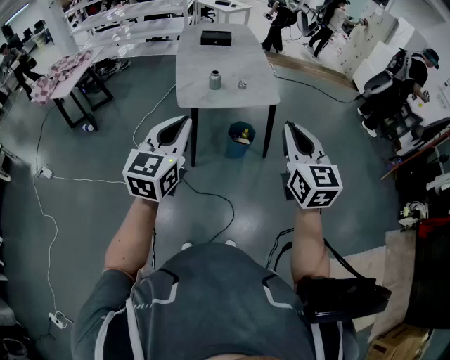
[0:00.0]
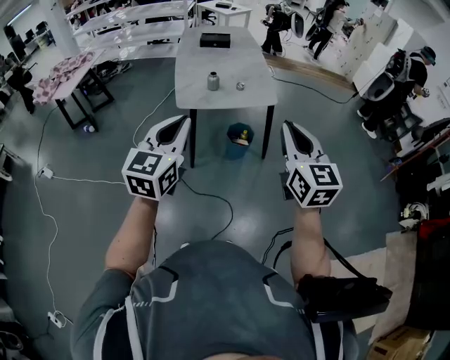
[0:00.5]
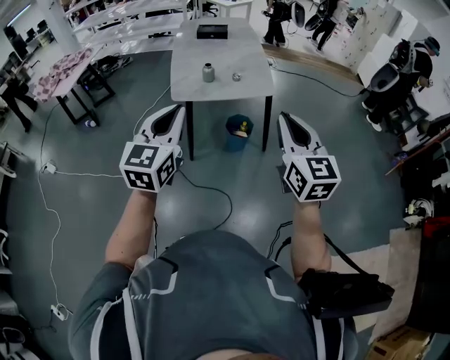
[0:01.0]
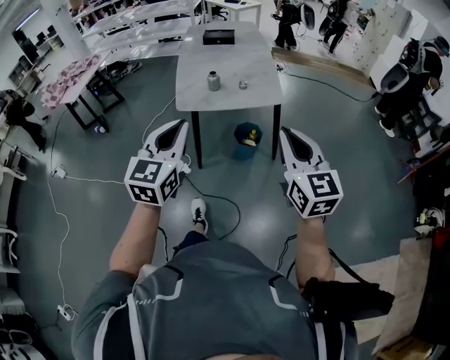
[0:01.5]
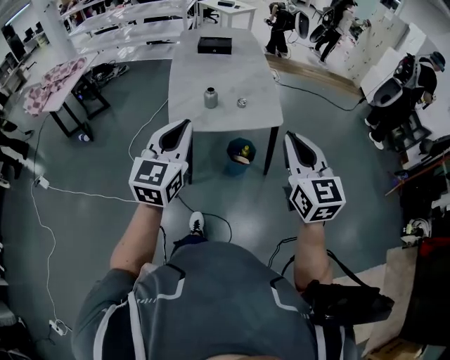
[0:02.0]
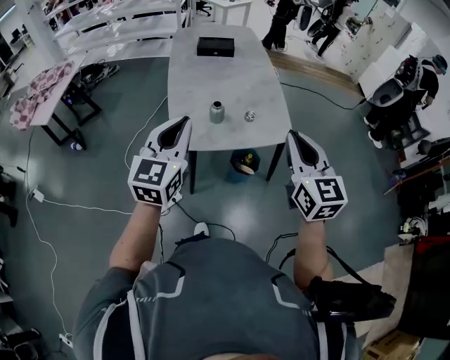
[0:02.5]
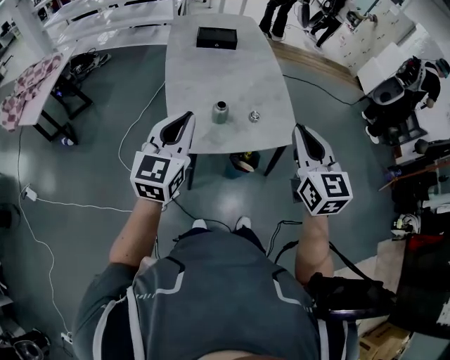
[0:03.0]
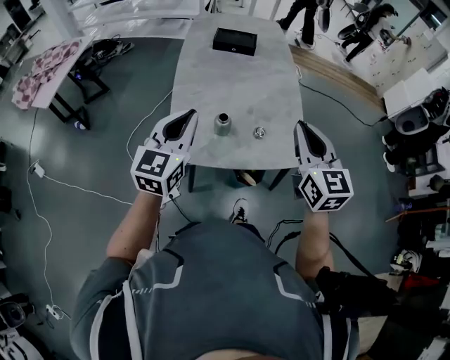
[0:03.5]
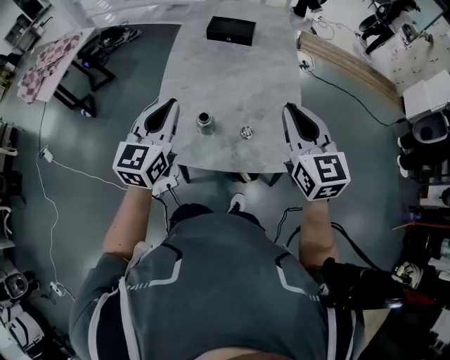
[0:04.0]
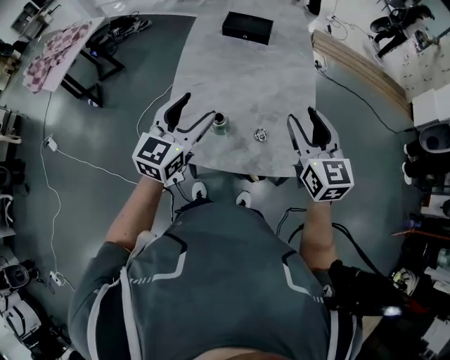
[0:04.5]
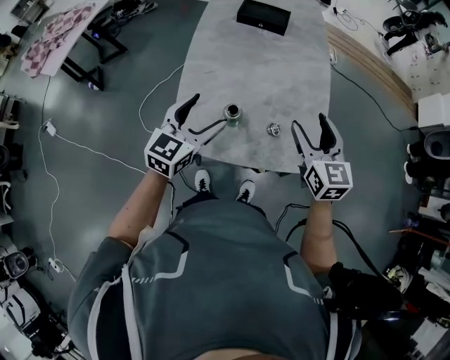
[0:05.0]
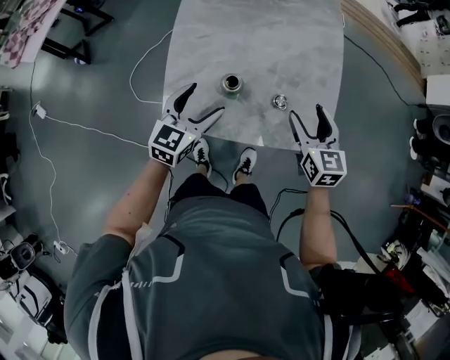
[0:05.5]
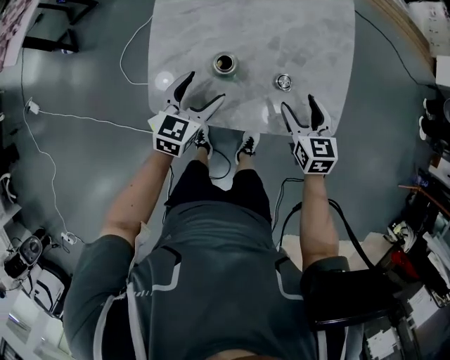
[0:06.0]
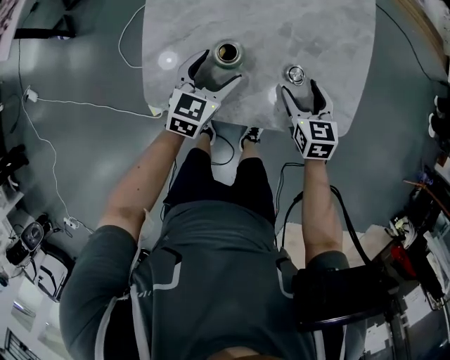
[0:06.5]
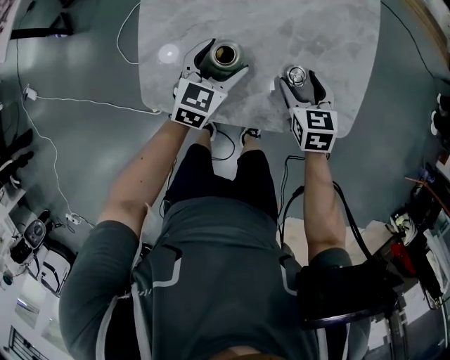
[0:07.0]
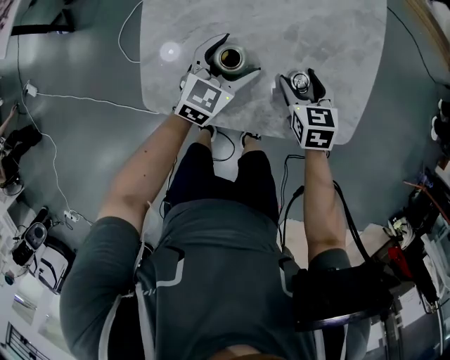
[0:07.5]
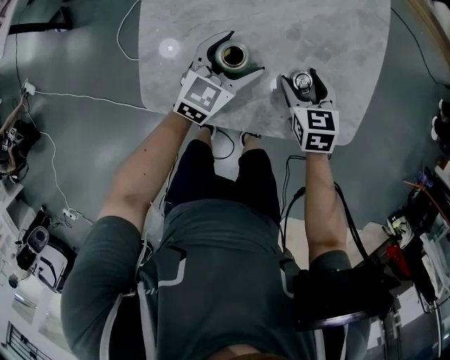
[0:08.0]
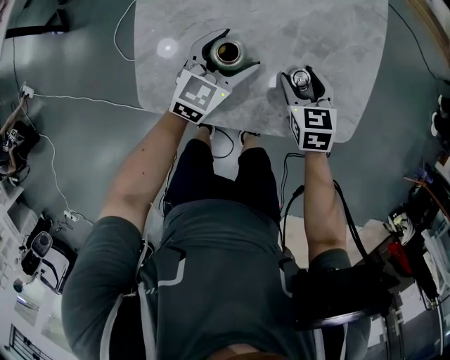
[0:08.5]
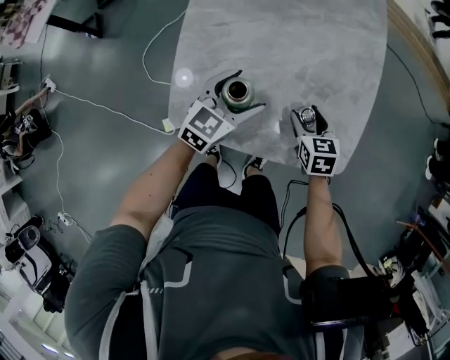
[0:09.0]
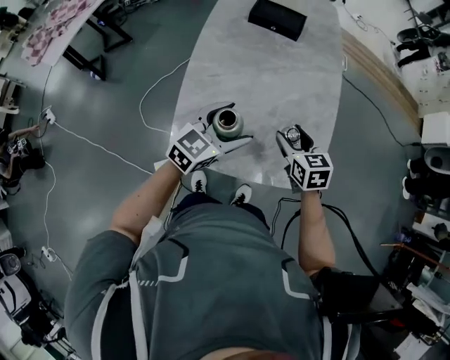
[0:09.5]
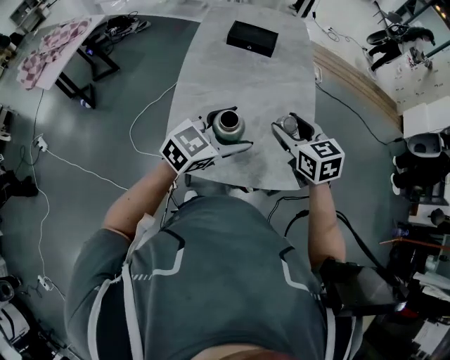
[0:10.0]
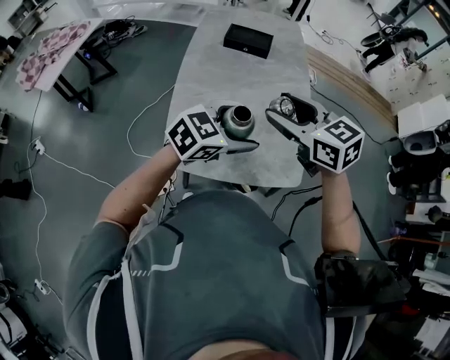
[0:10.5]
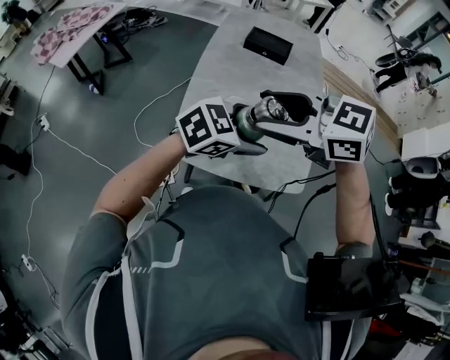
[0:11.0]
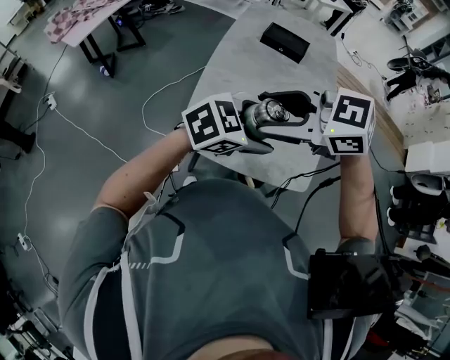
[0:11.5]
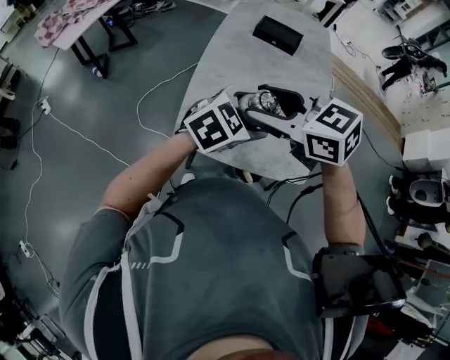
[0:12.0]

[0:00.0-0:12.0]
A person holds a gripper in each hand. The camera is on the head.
0:00.0 to 0:02.0: The two grippers go roughly 15 cm forward.
0:02.0 to 0:04.0: The grippers both shift forward by roughly 40 cm.
0:04.0 to 0:06.0: Both grippers move downward, some 35 cm. The right gripper swivels some 30 degrees, and opens up; the left gripper rotates about 20 degrees, and opens up.
0:06.0 to 0:08.0: The left gripper shifts some 10 cm forward and to the right. The right gripper heads downward and forward, covering some 10 cm.
0:08.0 to 0:10.0: Both grippers travel together upward, some 30 cm. The right gripper rotates some 20 degrees.
0:10.0 to 0:12.0: The right gripper ends up some 25 cm from where it was, and rotates about 40 degrees.

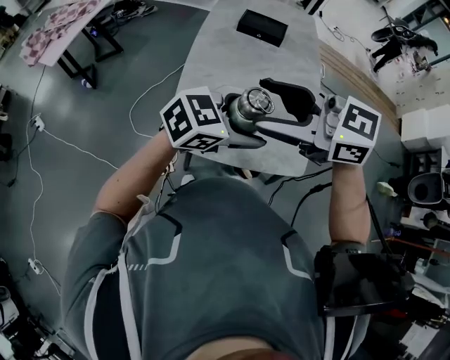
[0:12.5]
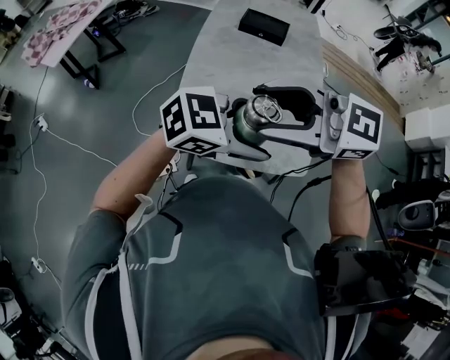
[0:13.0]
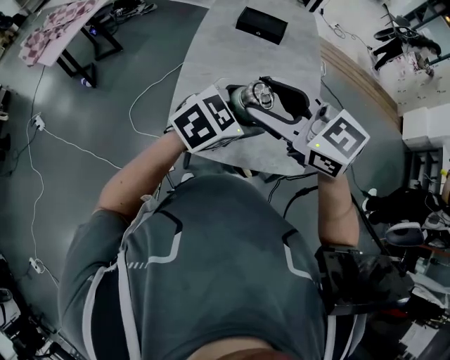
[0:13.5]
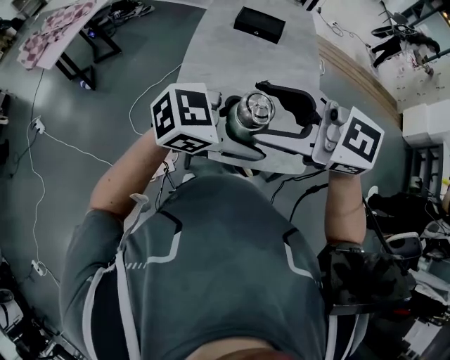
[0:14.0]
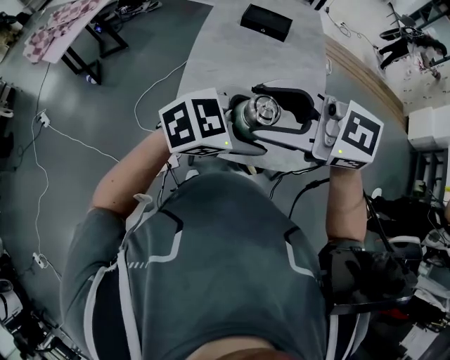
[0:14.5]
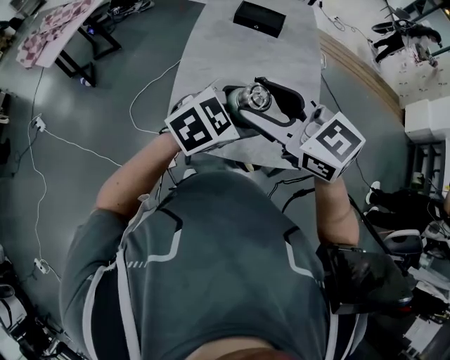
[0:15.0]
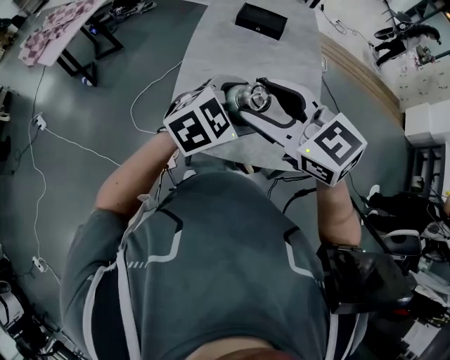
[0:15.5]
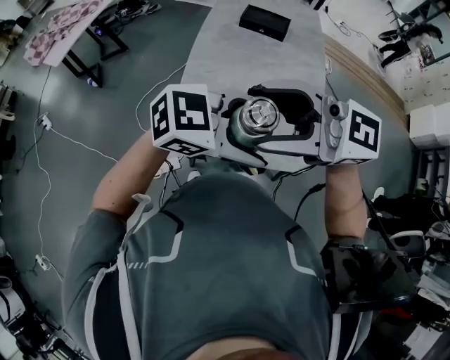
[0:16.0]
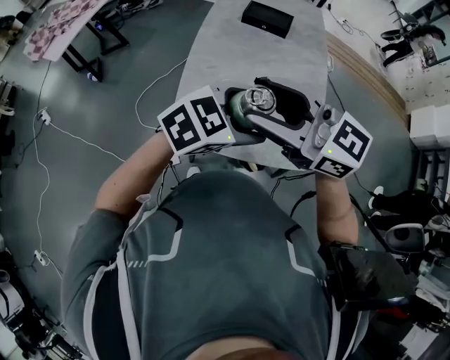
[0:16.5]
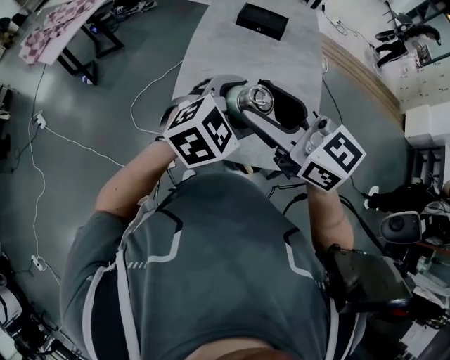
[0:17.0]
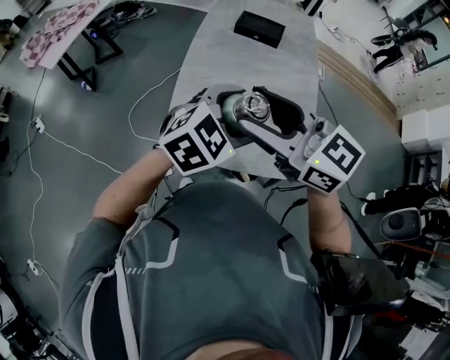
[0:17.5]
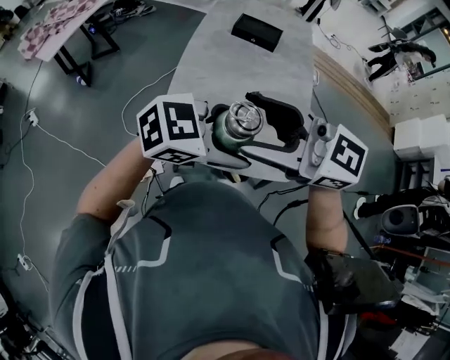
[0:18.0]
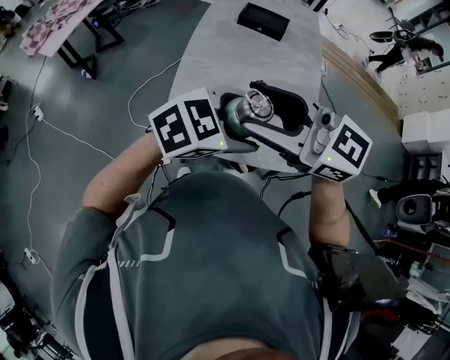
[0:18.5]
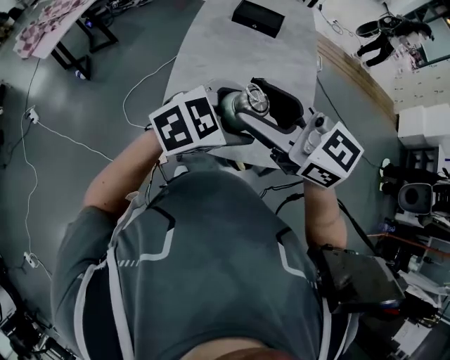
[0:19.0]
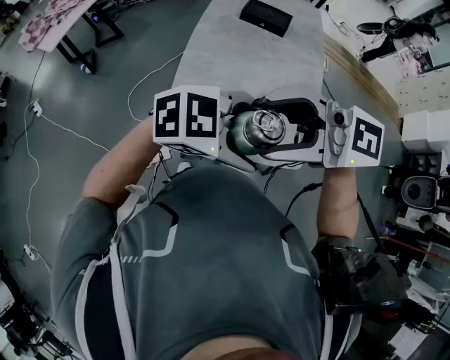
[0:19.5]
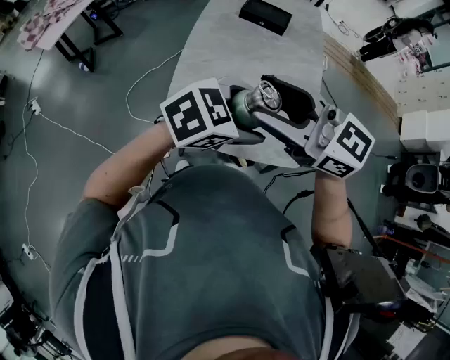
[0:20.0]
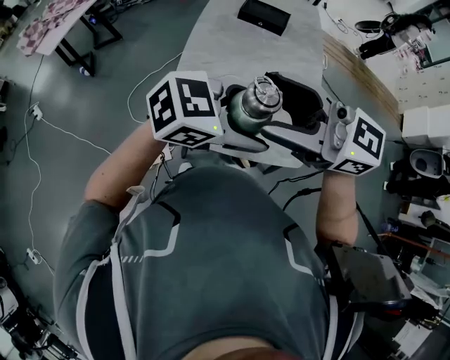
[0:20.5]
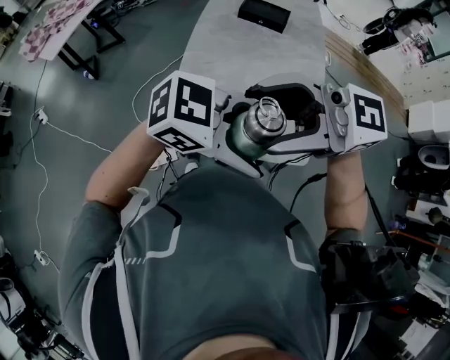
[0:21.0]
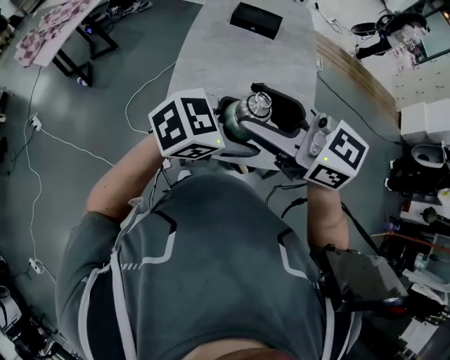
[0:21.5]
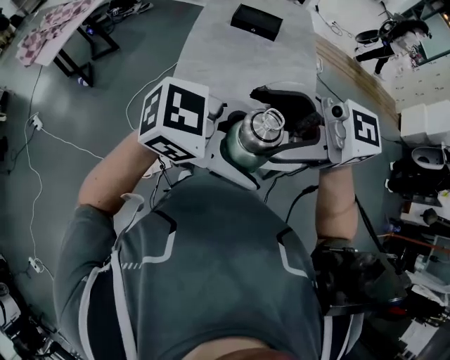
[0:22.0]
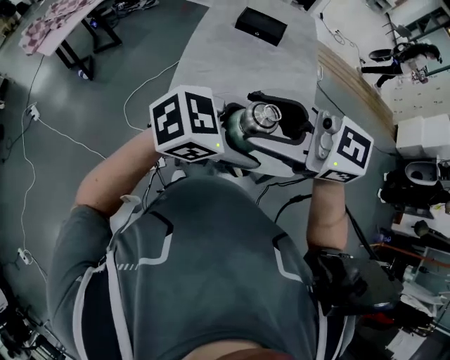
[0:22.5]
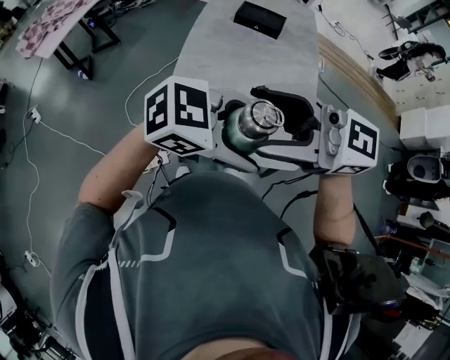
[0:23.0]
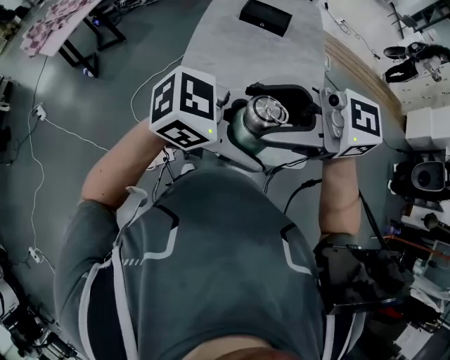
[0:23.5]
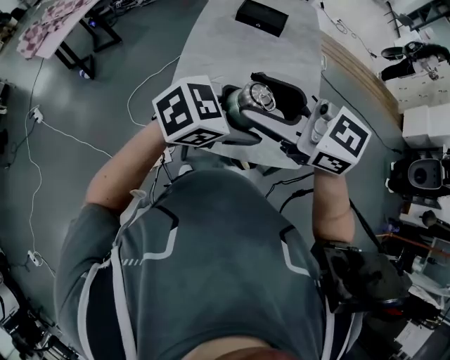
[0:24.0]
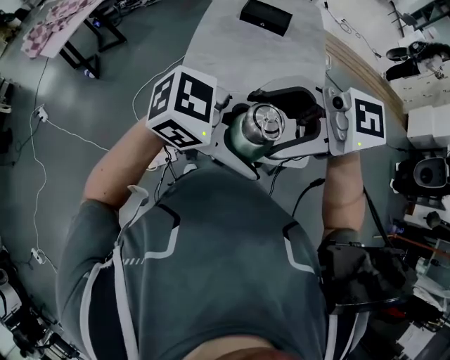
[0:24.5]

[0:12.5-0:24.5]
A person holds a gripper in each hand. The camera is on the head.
0:22.5 to 0:24.5: The right gripper turns by about 20 degrees. Meanwhile the left gripper changes place by about 5 cm, and rotates some 20 degrees.

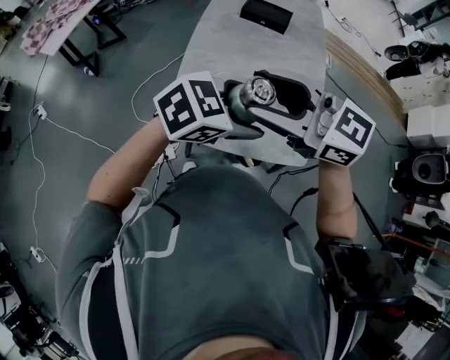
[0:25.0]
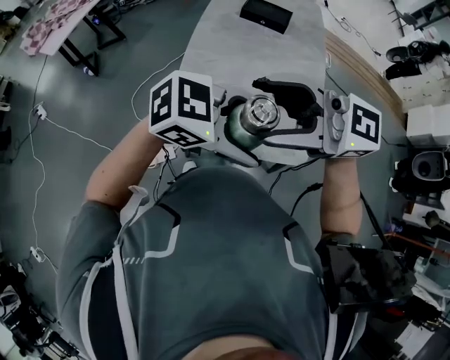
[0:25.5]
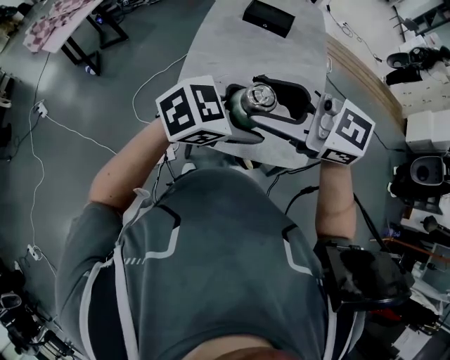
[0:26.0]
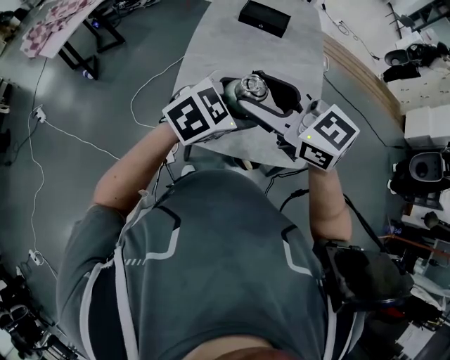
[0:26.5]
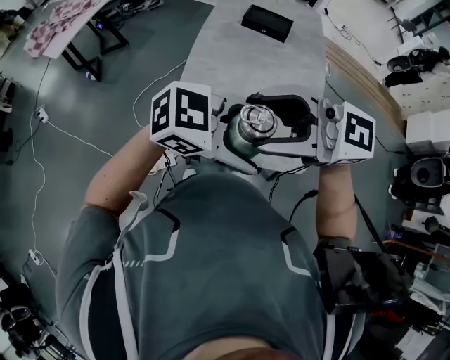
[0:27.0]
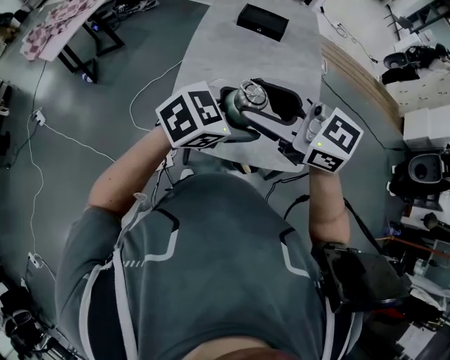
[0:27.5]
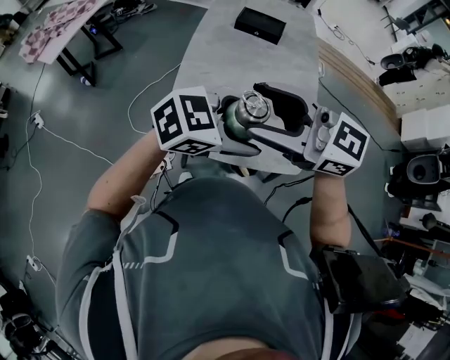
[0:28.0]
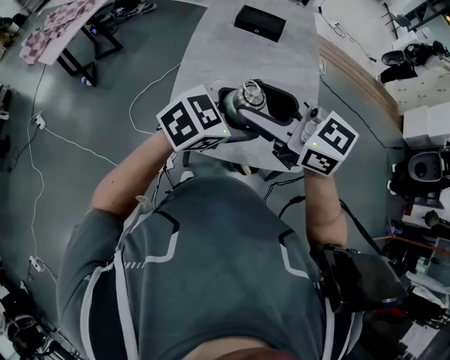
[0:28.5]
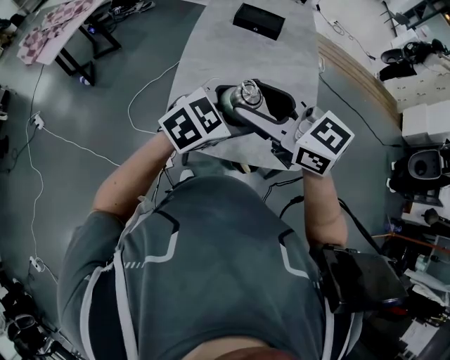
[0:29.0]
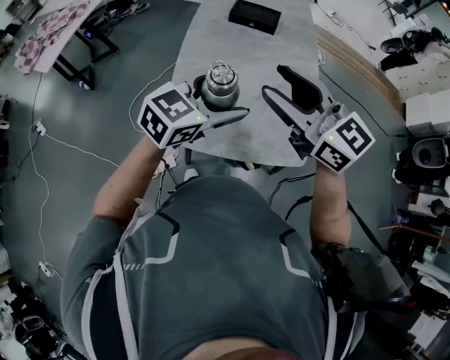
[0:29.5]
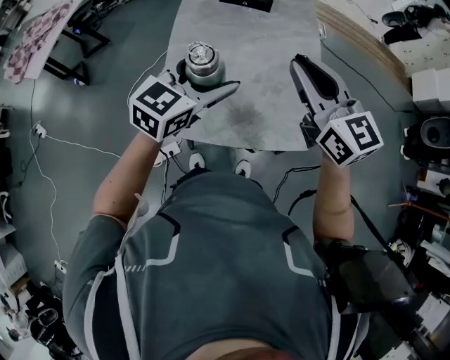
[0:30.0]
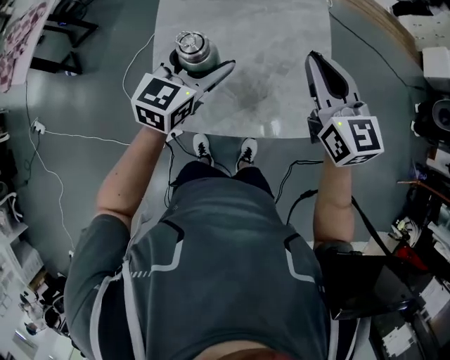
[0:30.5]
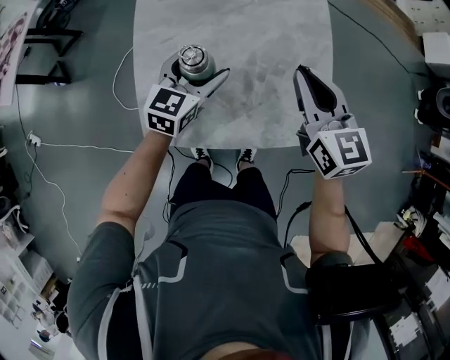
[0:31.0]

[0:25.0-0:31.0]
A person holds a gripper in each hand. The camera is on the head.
0:25.0 to 0:27.0: The right gripper moves some 5 cm, and swivels roughly 20 degrees. The left gripper shifts by roughly 10 cm, and turns by roughly 30 degrees.
0:27.0 to 0:29.0: The left gripper moves about 10 cm, and changes its angle by about 40 degrees; the right gripper shifts by approximately 10 cm, and changes its angle by roughly 40 degrees.
0:29.0 to 0:31.0: The left gripper is displaced downward and forward by approximately 25 cm, and swivels about 20 degrees, while the right gripper heads downward, to the right and forward, covering some 30 cm, changes its angle by approximately 40 degrees, and closes up.
